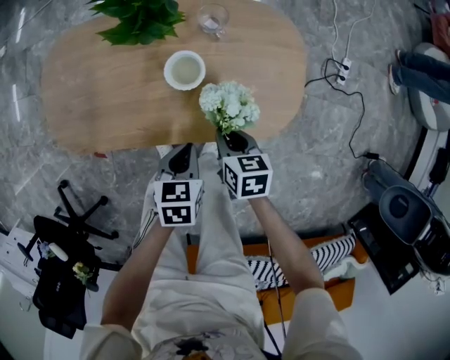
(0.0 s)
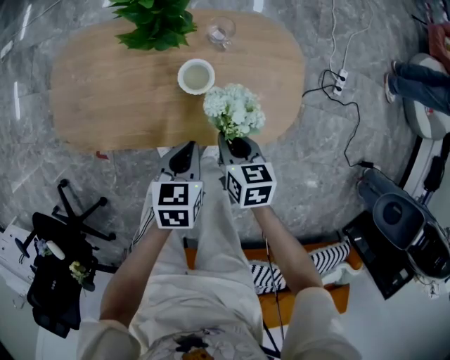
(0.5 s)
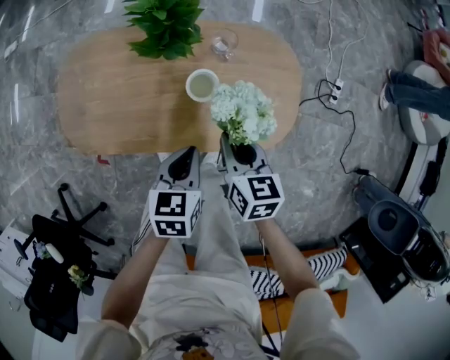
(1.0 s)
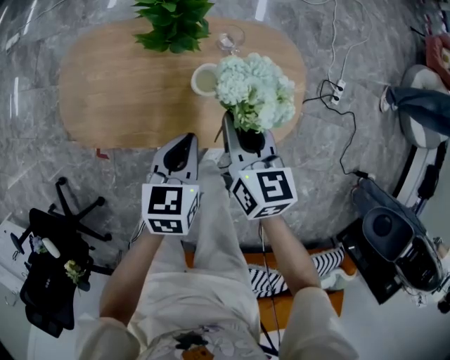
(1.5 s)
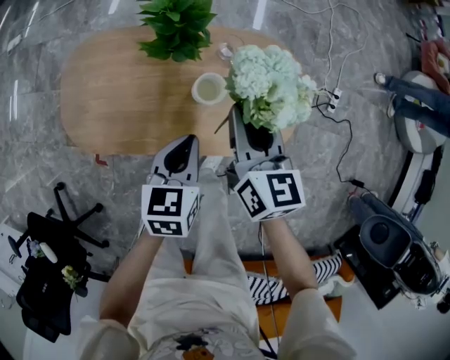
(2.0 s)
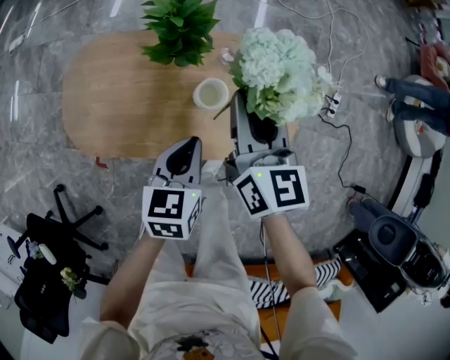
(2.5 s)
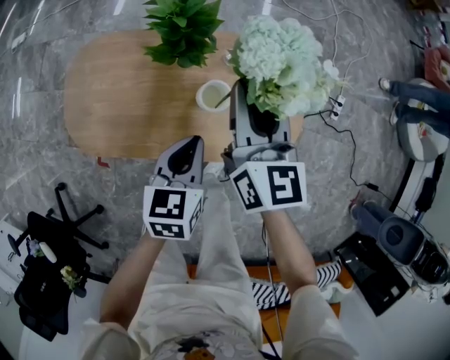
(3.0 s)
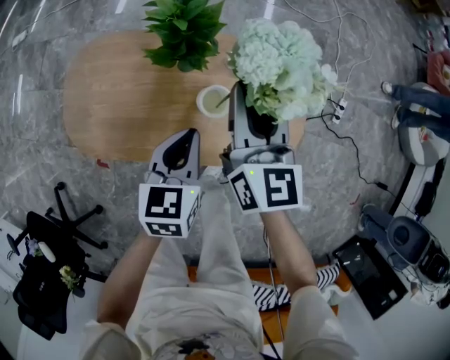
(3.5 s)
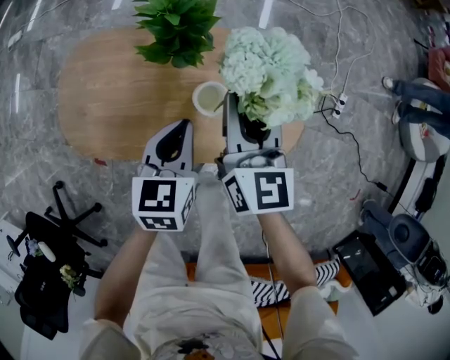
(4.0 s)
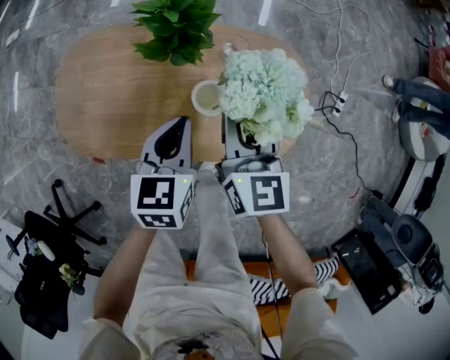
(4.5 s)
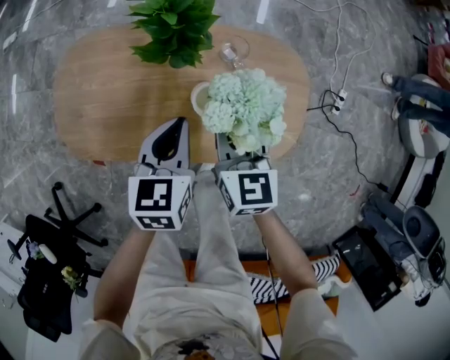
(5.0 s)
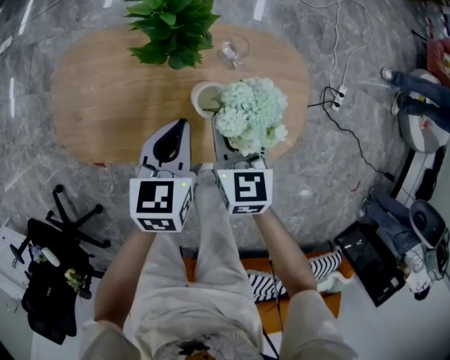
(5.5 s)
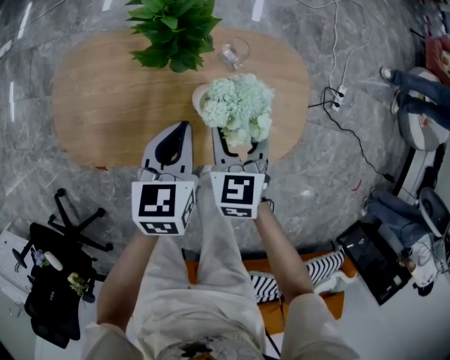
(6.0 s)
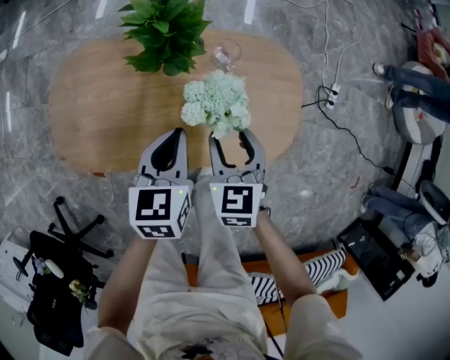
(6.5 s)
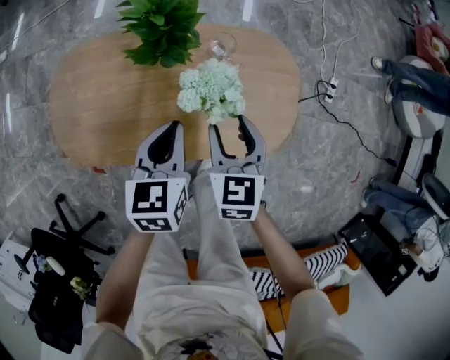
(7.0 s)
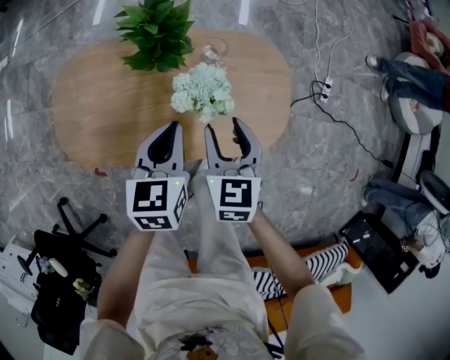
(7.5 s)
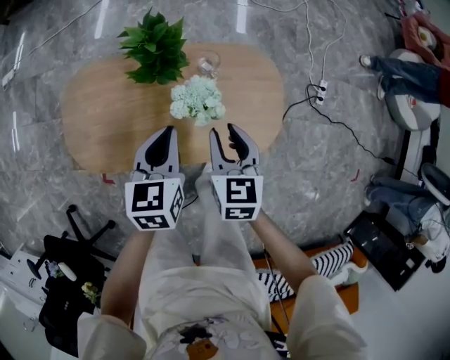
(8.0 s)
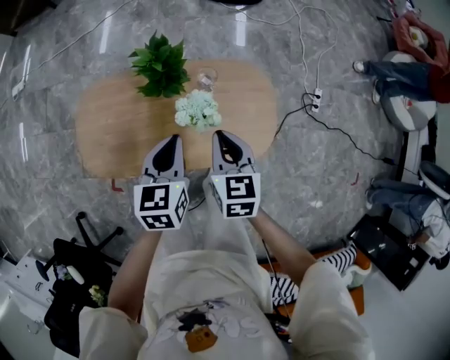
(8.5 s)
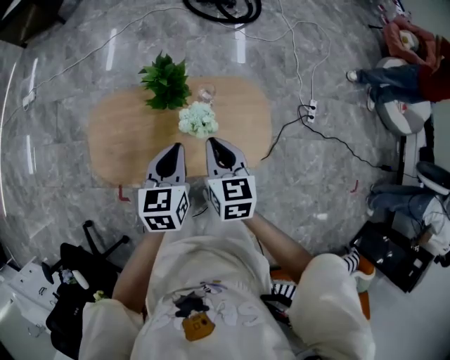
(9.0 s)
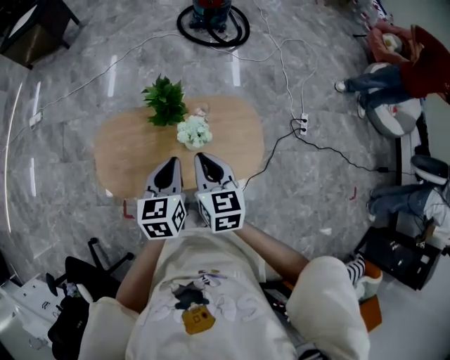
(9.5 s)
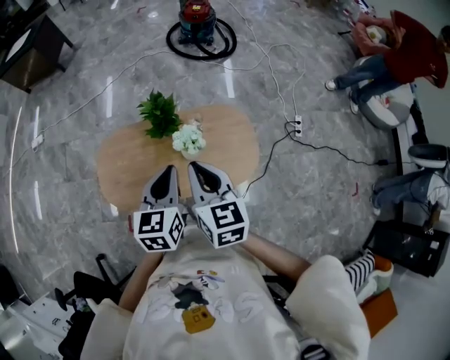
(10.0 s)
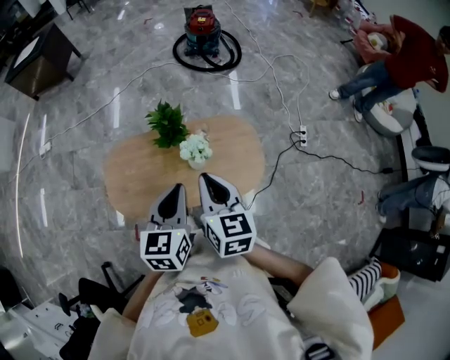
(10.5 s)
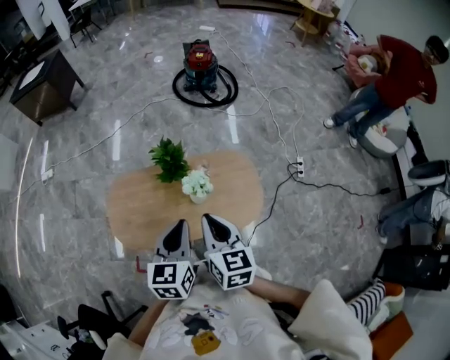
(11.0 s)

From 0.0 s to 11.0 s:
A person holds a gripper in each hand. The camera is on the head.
From 0.0 s to 2.0 s: The right gripper is displaced upward and forward by about 25 cm, and points its fingers about 30 degrees further upward, while the left gripper travels upward and forward by some 15 cm.
From 2.0 s to 3.5 s: The right gripper goes approximately 5 cm forward.
From 3.5 s to 5.5 s: The right gripper travels downward by approximately 15 cm, and swivels some 20 degrees.
From 5.5 s to 7.5 s: The right gripper moves about 5 cm, while the left gripper shifts by roughly 5 cm.
From 7.5 s to 9.0 s: Both grippers move upward, roughly 15 cm. The right gripper closes up.
From 9.0 s to 11.0 s: Both grippers travel together upward and backward, approximately 15 cm.

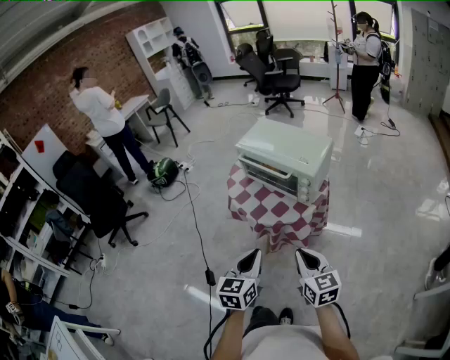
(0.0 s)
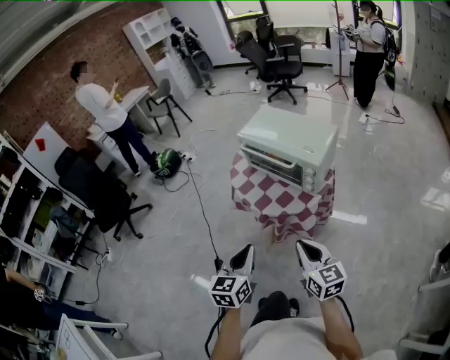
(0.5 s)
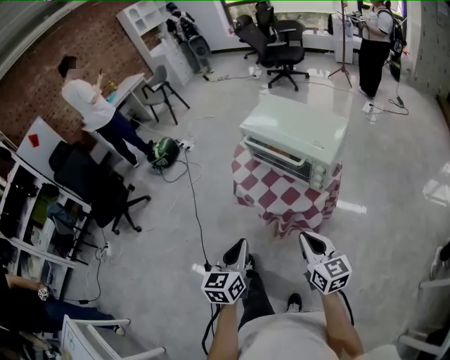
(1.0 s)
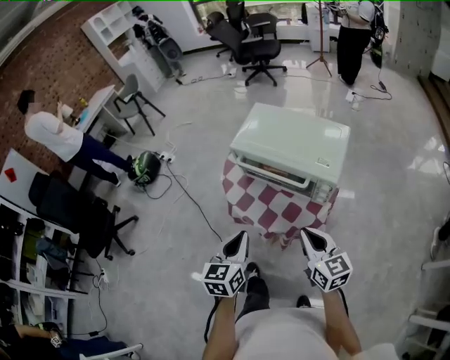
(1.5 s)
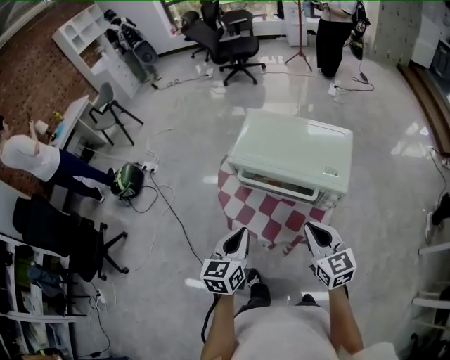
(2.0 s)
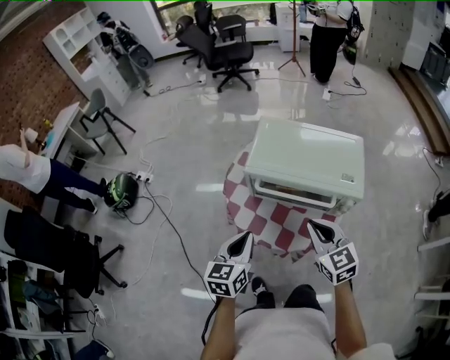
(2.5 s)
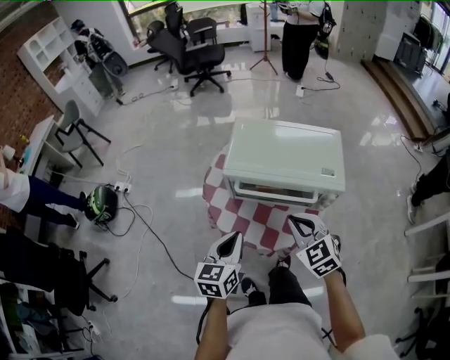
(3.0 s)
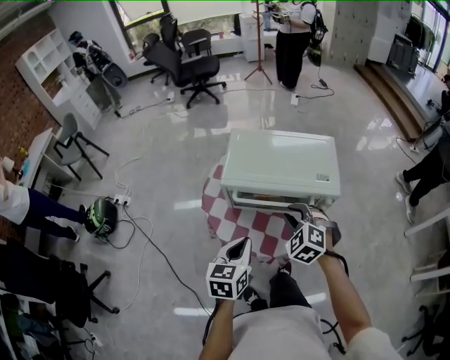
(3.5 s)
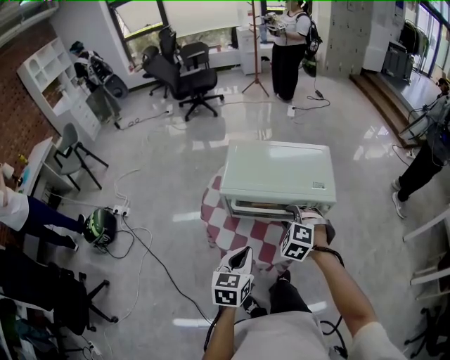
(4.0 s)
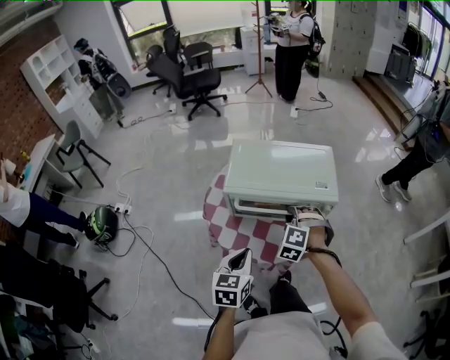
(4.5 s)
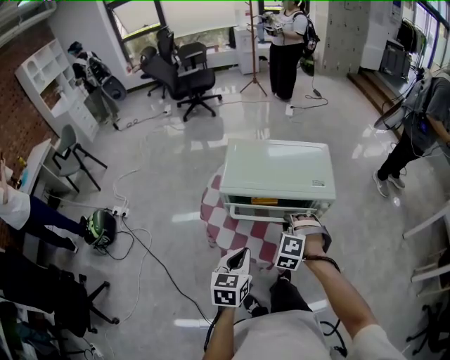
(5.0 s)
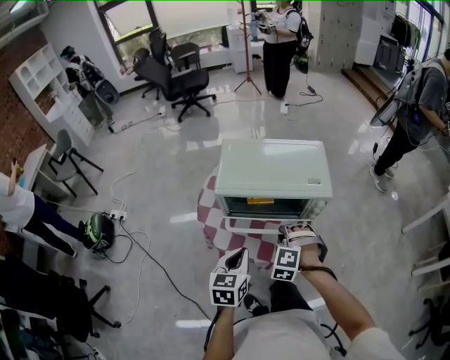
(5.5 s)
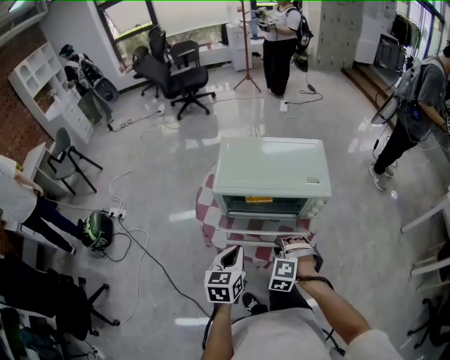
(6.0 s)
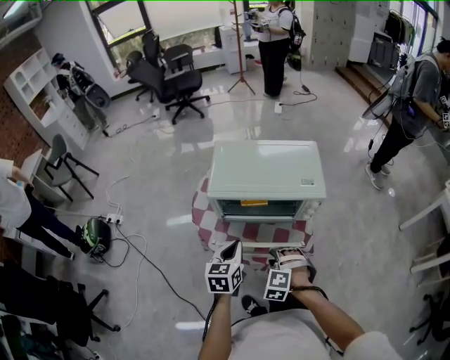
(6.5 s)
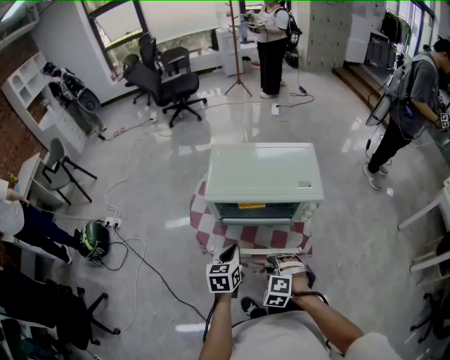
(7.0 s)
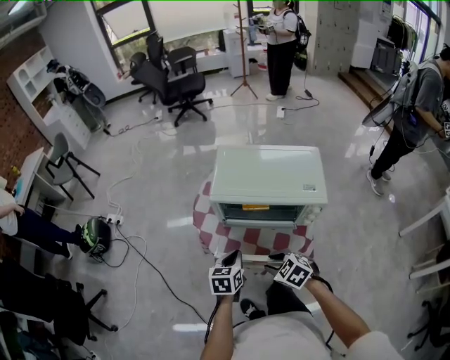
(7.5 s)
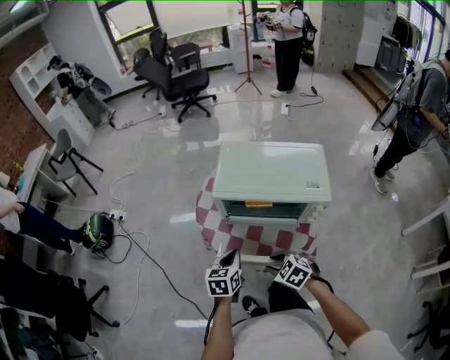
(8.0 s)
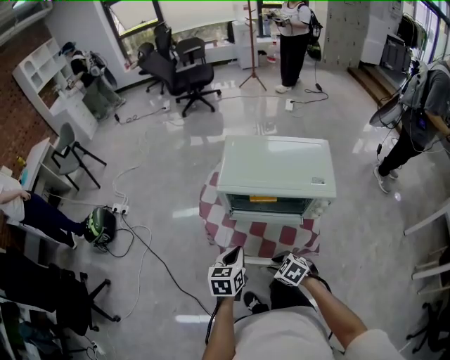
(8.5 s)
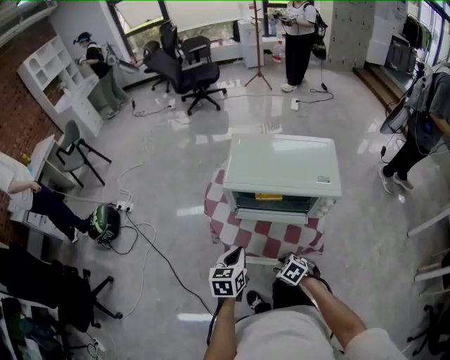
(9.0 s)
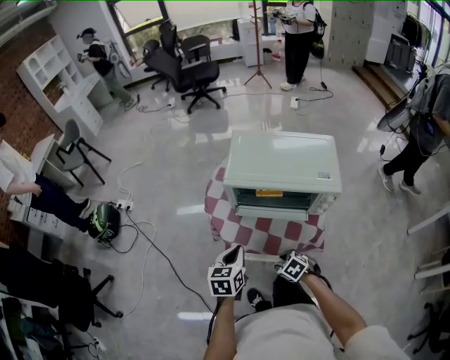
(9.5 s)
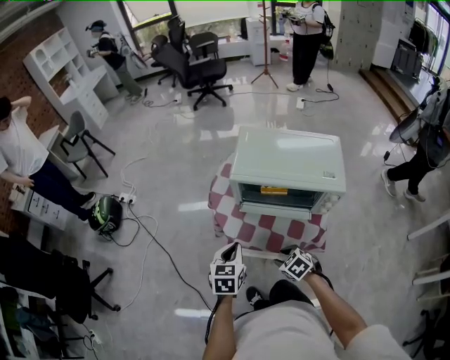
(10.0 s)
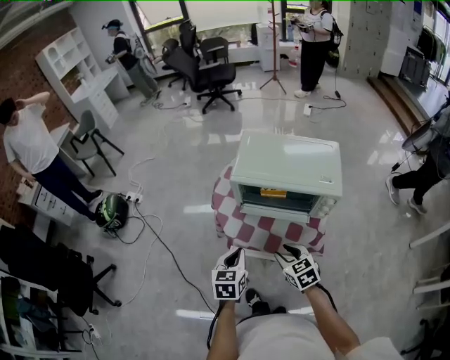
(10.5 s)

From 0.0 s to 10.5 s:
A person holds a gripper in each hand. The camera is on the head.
From 0.0 s to 2.0 s: Both grippers travel together forward, about 30 cm.
From 2.0 s to 4.0 s: The right gripper heads forward, downward and to the left, covering about 15 cm, points its fingers some 30 degrees further downward, and opens.
From 4.0 s to 6.5 s: The left gripper moves downward, some 5 cm. The right gripper is displaced backward and downward by approximately 15 cm.
From 6.5 s to 8.5 s: The right gripper ends up roughly 5 cm from where it was, and rotates about 50 degrees.
From 8.5 s to 10.5 s: The left gripper shifts by about 5 cm; the right gripper moves upward, approximately 10 cm, and rotates about 30 degrees.

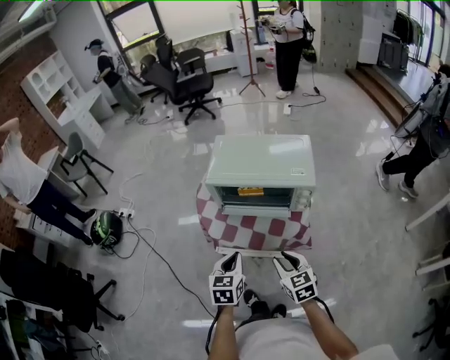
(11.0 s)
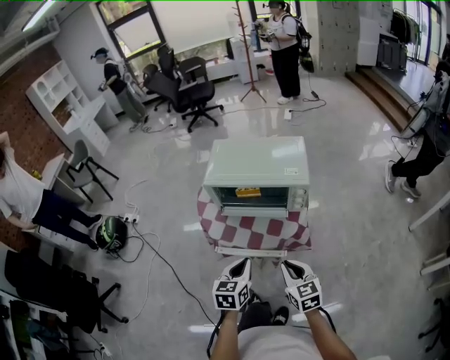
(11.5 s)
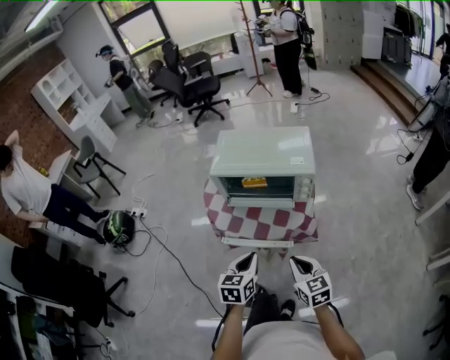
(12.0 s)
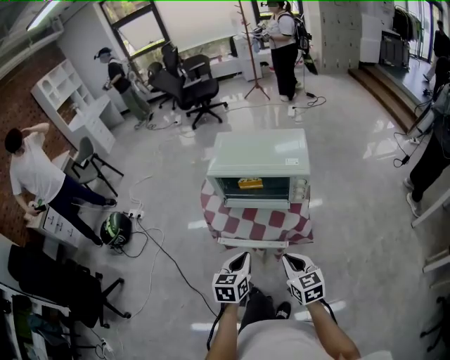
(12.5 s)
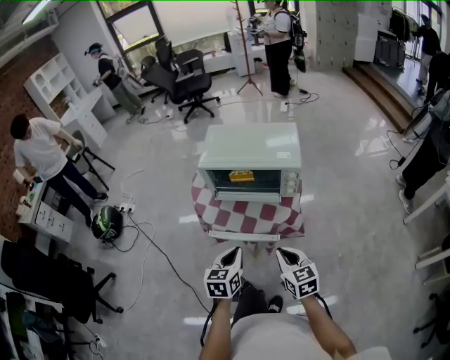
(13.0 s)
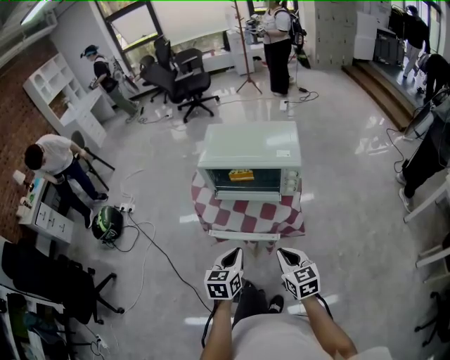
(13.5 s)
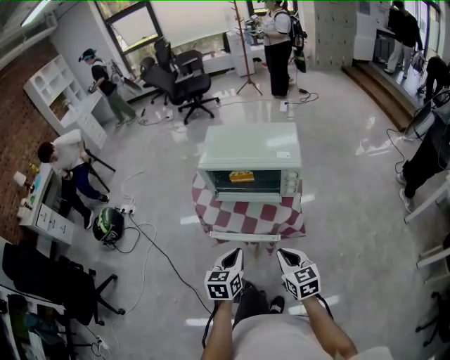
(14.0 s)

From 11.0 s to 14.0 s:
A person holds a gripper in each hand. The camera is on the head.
From 11.0 s to 12.5 s: Both grippers travel together backward, approximately 5 cm. The right gripper closes up.
From 12.5 s to 14.0 s: The grippers move only a little.

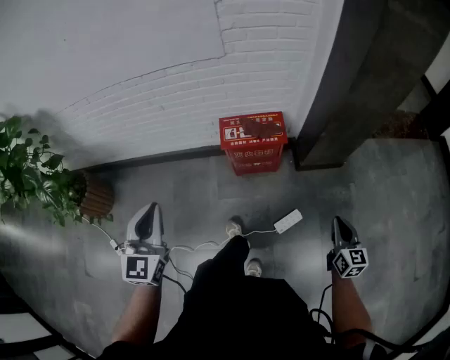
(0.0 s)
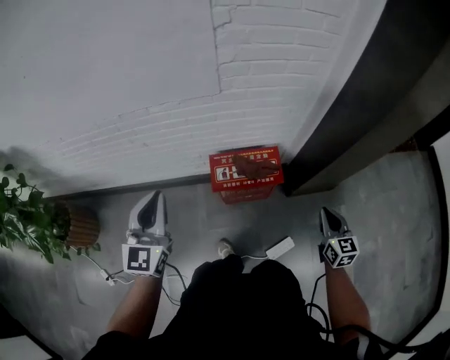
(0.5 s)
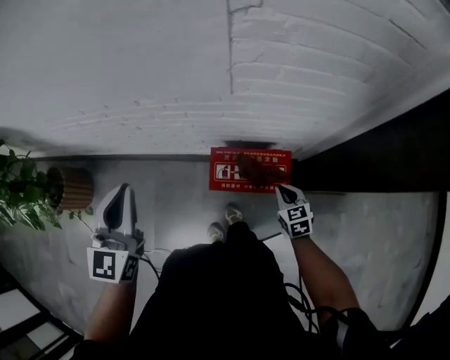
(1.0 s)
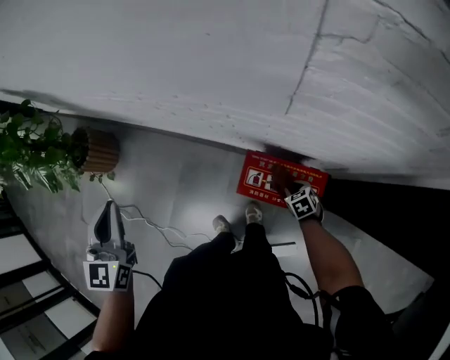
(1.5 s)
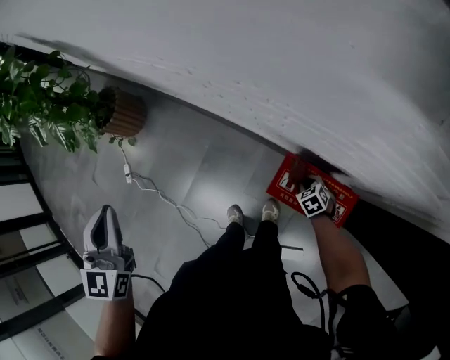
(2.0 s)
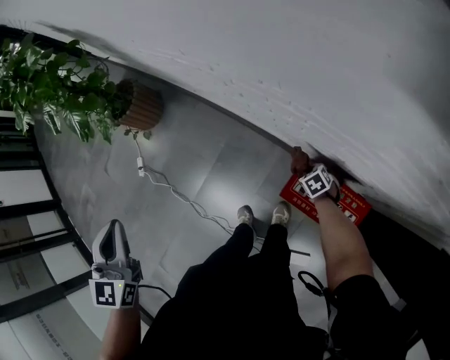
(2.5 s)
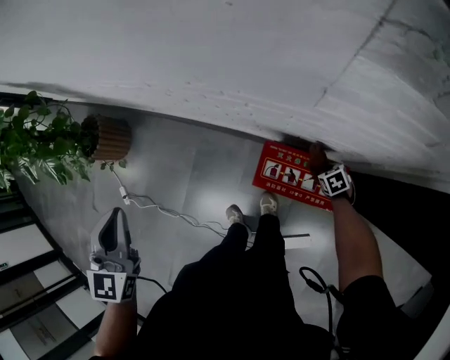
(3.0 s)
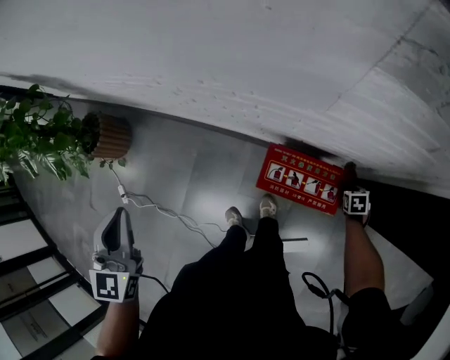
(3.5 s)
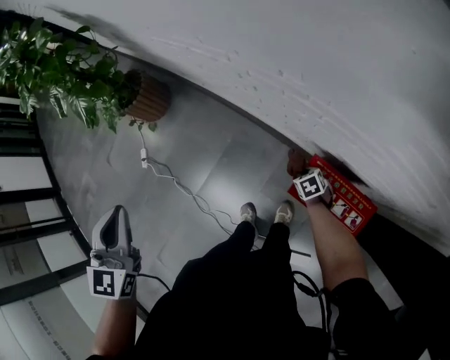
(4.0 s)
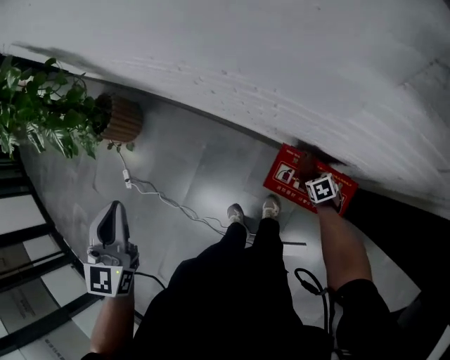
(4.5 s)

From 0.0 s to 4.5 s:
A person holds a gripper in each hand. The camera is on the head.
From 0.0 s to 2.0 s: The right gripper moves some 70 cm, and points its fingers roughly 50 degrees further downward. The left gripper changes place by roughly 25 cm, and changes its angle by roughly 40 degrees.
